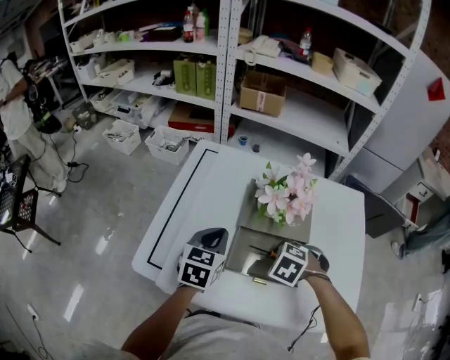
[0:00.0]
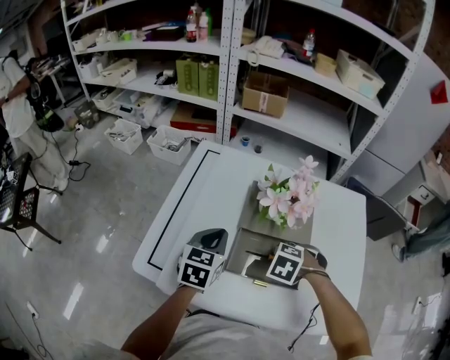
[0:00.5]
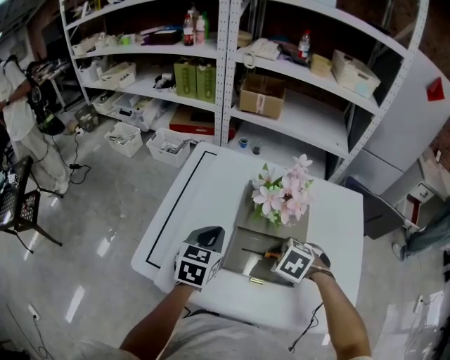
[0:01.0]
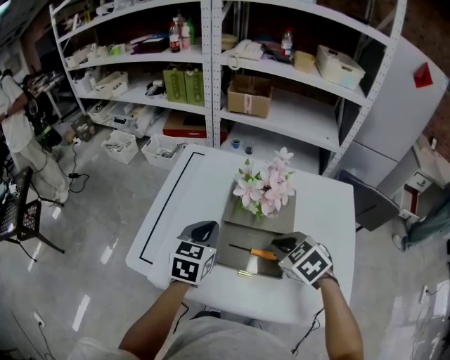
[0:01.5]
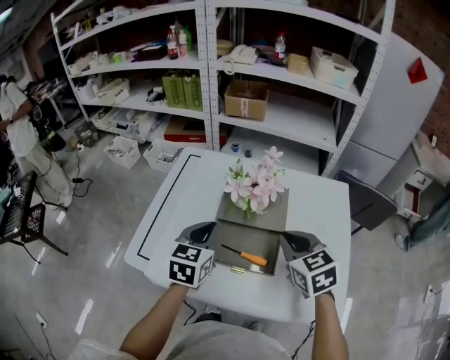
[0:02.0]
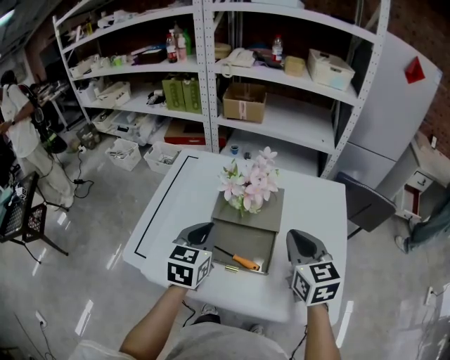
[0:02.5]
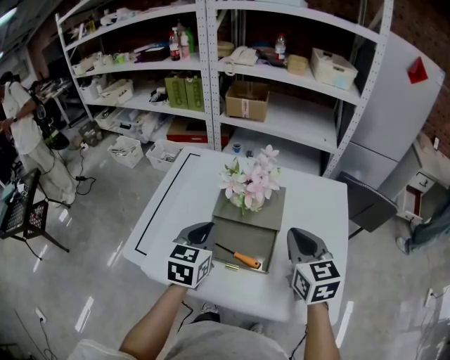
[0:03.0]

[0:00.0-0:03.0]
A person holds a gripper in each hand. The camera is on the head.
0:00.0 to 0:01.5: The right gripper is displaced upward by approximately 10 cm, and changes its angle by some 30 degrees. The left gripper ends up about 5 cm from where it was.
0:01.5 to 0:03.0: The left gripper changes place by roughly 5 cm; the right gripper moves upward and to the right, some 15 cm, and angles its fingers upward, by roughly 30 degrees.

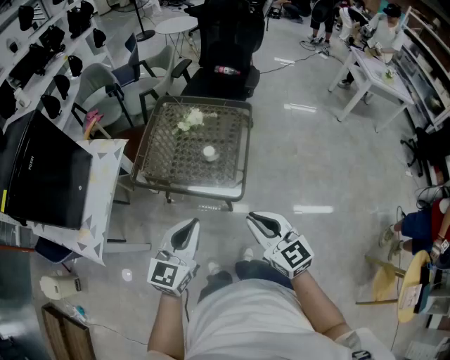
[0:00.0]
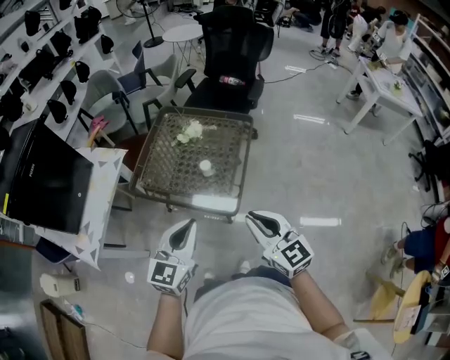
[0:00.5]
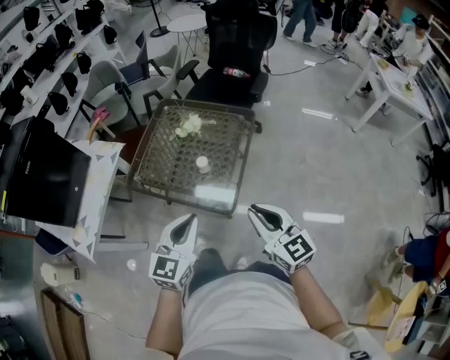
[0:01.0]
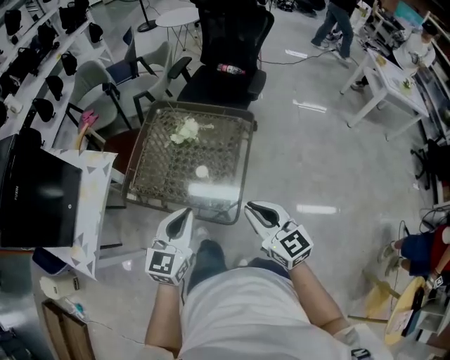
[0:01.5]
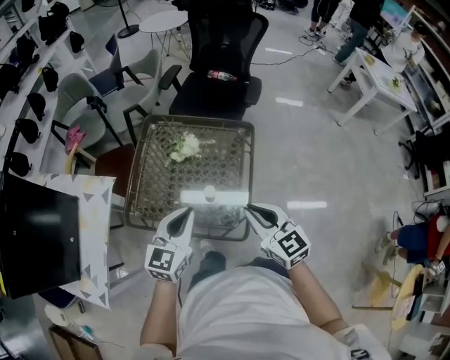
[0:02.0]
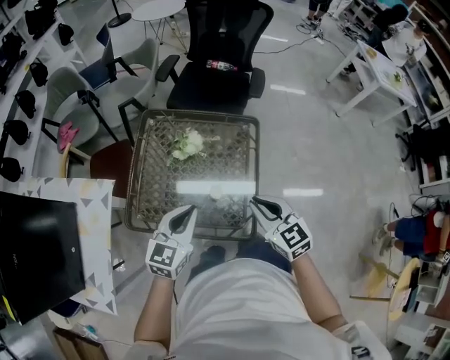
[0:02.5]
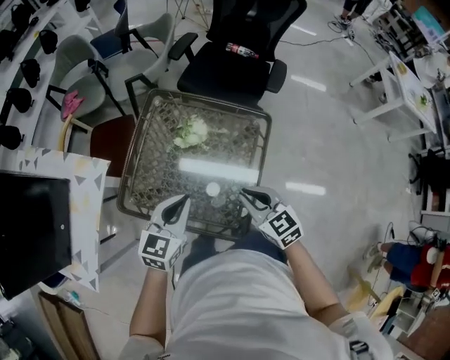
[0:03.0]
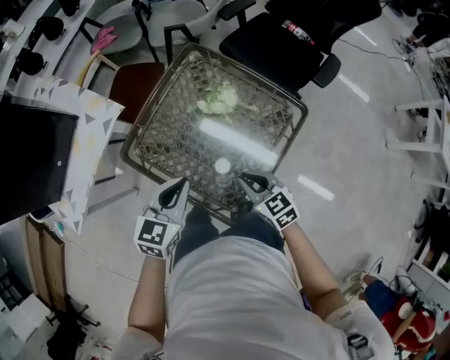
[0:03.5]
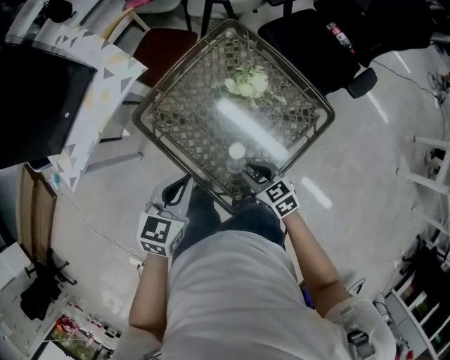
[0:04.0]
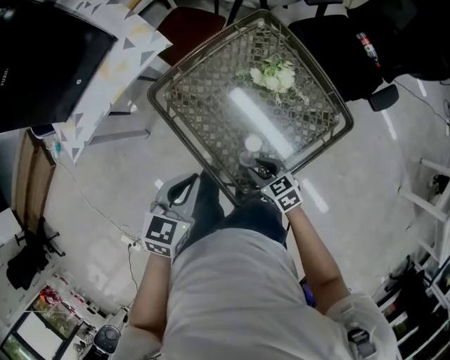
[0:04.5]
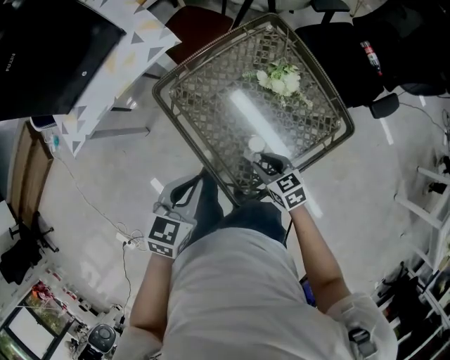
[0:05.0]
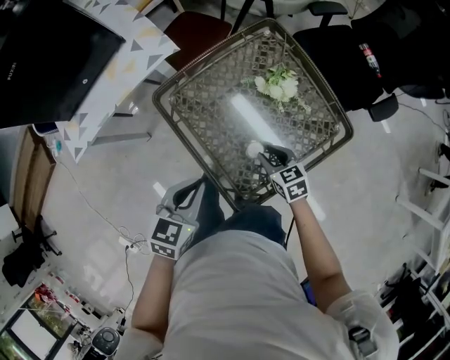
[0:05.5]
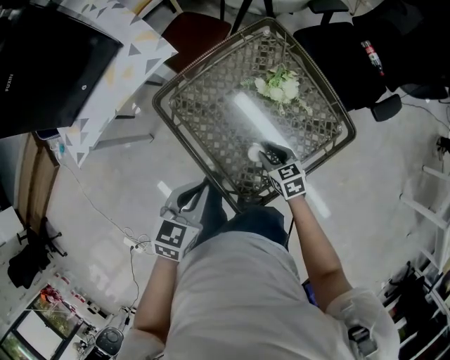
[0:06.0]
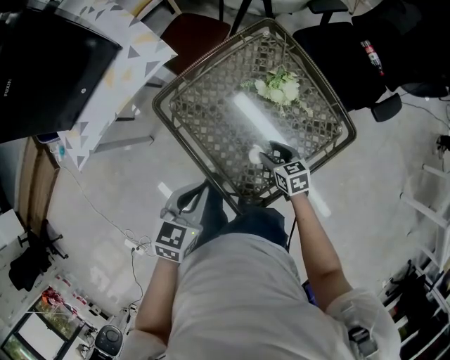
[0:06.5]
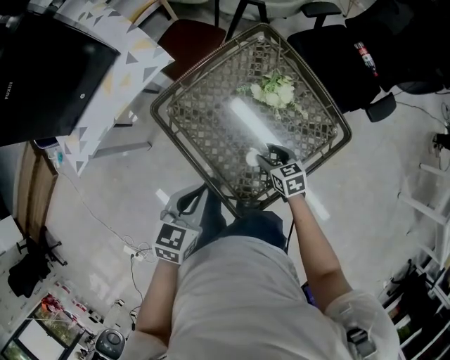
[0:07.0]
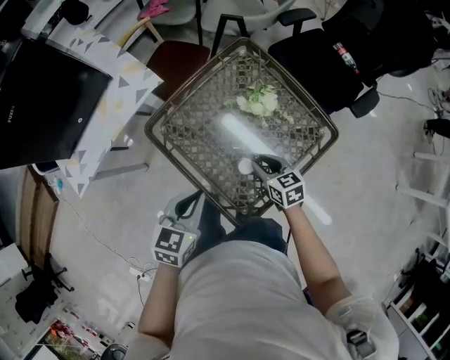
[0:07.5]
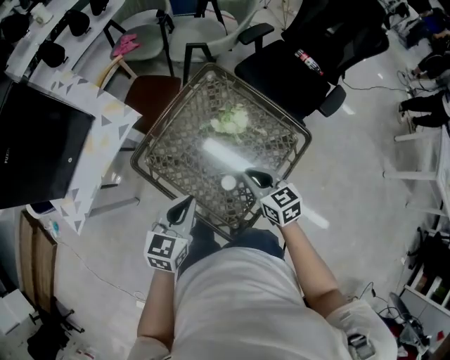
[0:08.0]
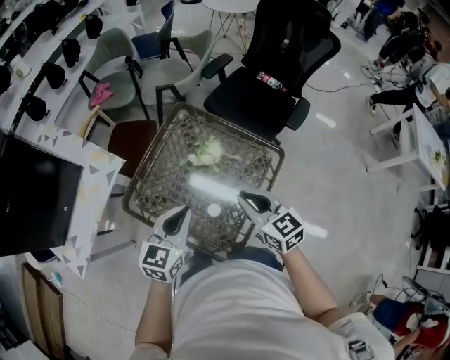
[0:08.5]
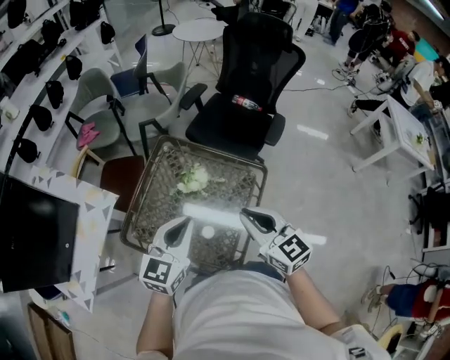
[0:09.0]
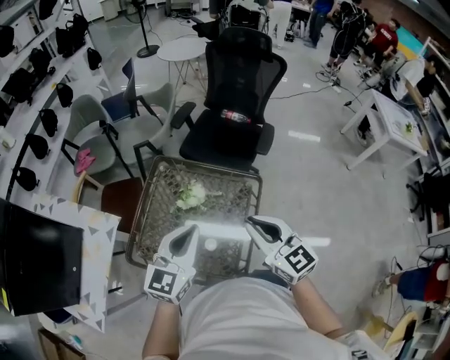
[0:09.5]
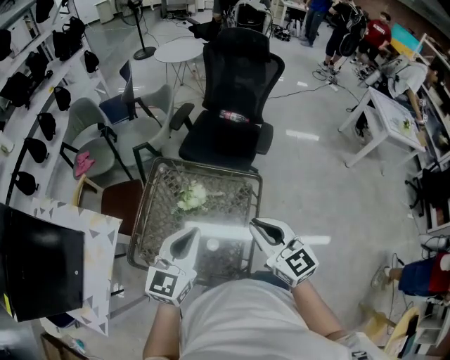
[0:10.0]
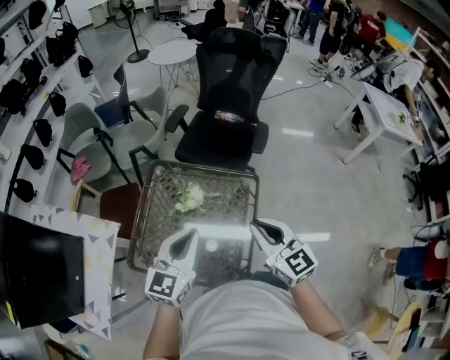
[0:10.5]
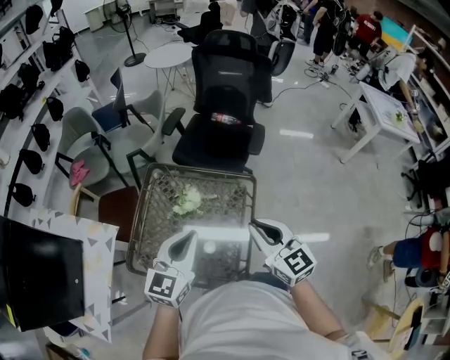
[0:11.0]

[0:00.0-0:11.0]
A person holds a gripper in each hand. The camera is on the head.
0:00.0 to 0:02.0: The grippers both shift forward by roughly 25 cm.
0:02.0 to 0:03.5: The left gripper shifts roughly 10 cm downward, and rotates some 30 degrees. The right gripper moves downward, roughly 20 cm, and rotates about 40 degrees.
0:03.5 to 0:05.5: The right gripper goes roughly 10 cm downward, and opens up; the left gripper travels to the left and backward by roughly 10 cm.
0:05.5 to 0:07.5: The right gripper opens and closes again.
0:07.5 to 0:09.0: The right gripper moves upward, about 30 cm, turns by some 40 degrees, and closes its fingers, while the left gripper heads upward, covering approximately 15 cm, and changes its angle by about 30 degrees.
0:09.0 to 0:11.0: The right gripper moves some 5 cm.

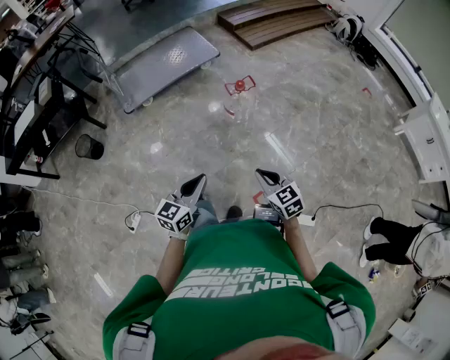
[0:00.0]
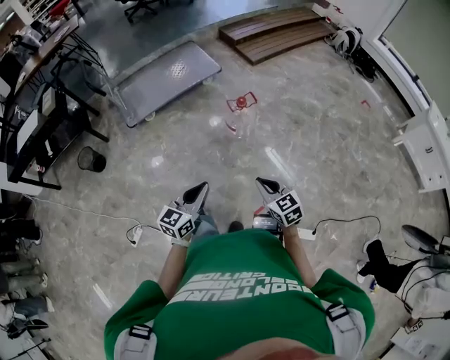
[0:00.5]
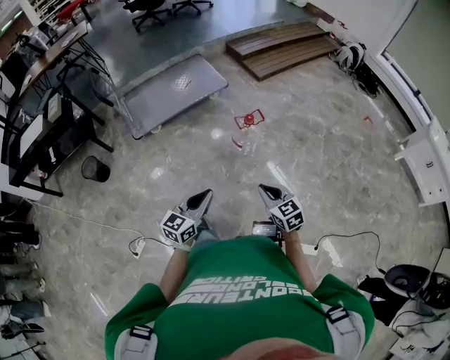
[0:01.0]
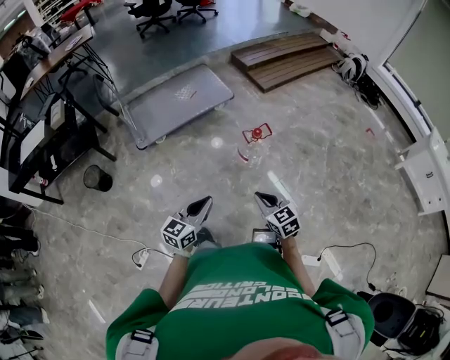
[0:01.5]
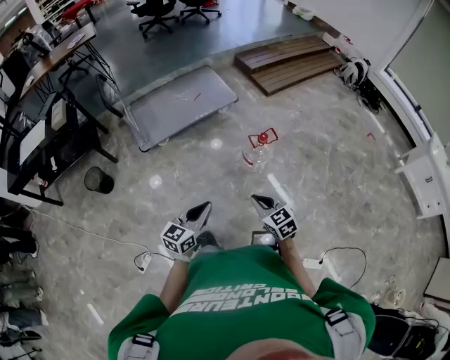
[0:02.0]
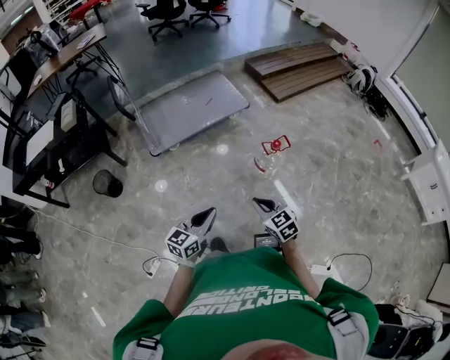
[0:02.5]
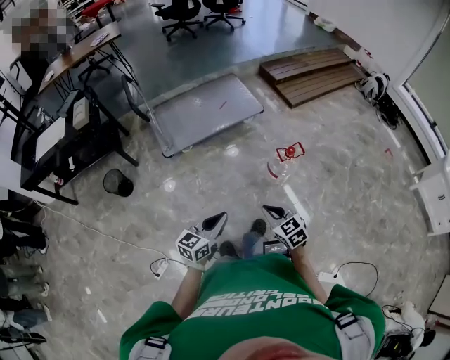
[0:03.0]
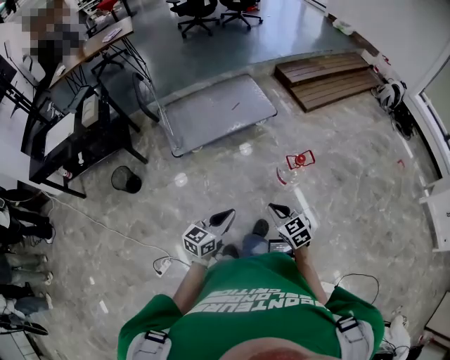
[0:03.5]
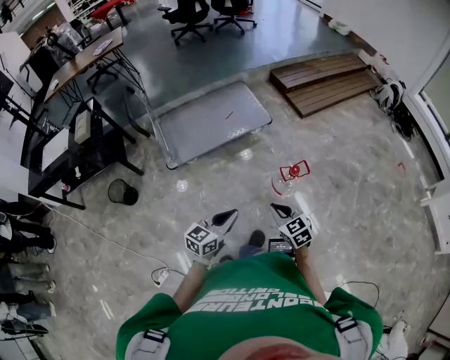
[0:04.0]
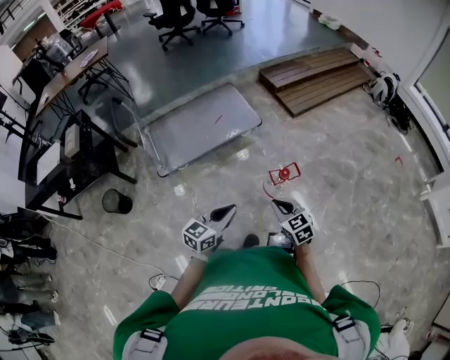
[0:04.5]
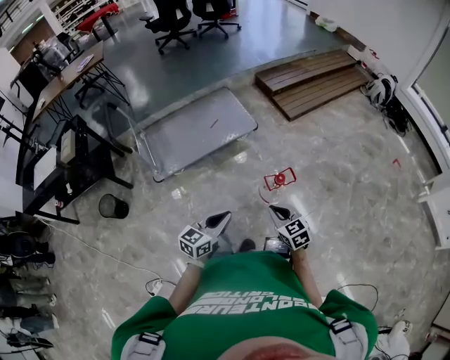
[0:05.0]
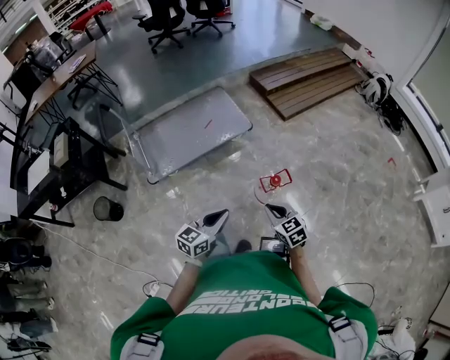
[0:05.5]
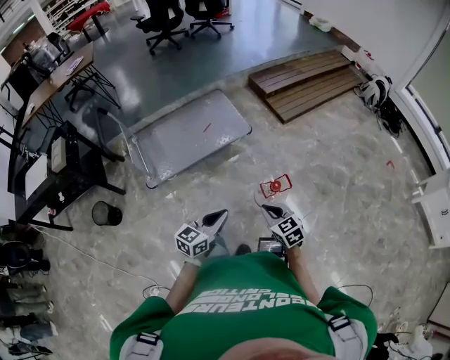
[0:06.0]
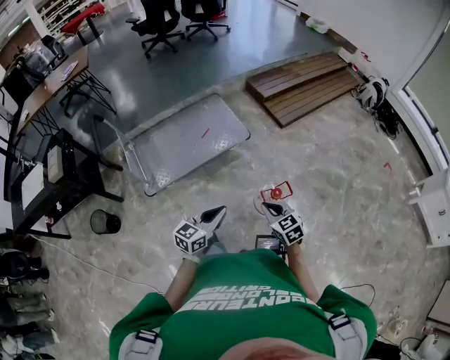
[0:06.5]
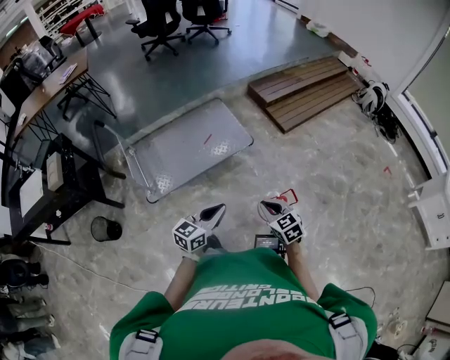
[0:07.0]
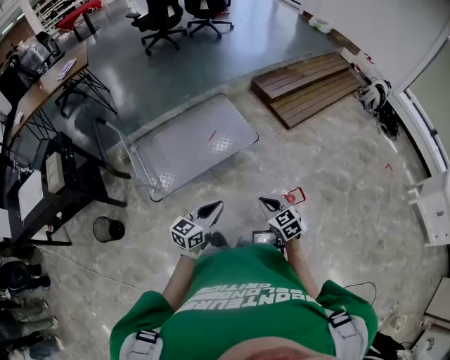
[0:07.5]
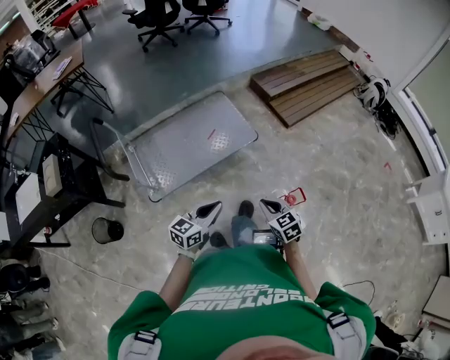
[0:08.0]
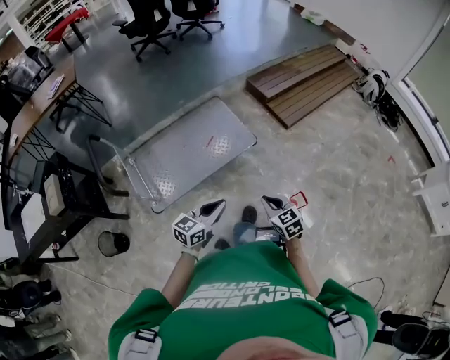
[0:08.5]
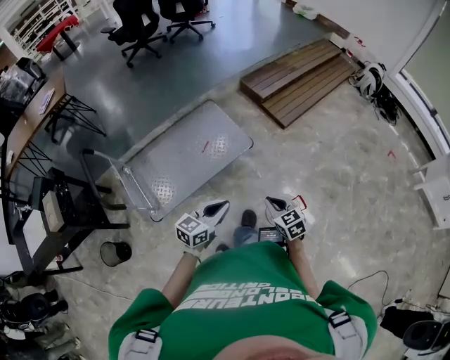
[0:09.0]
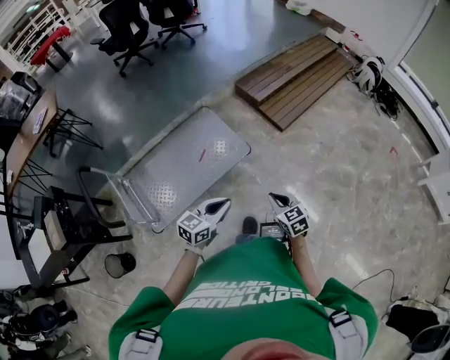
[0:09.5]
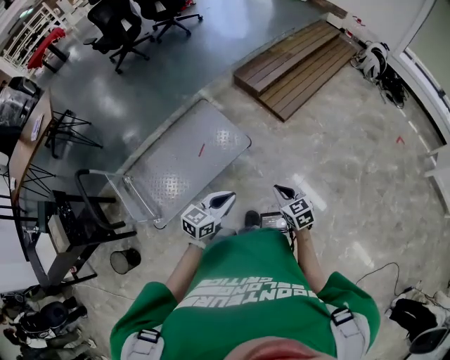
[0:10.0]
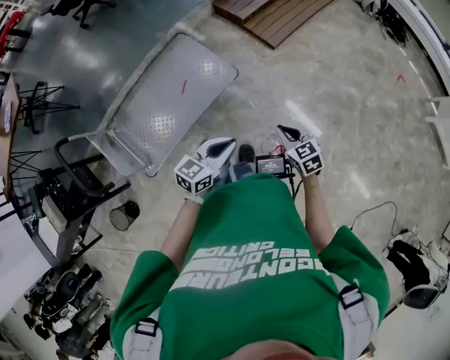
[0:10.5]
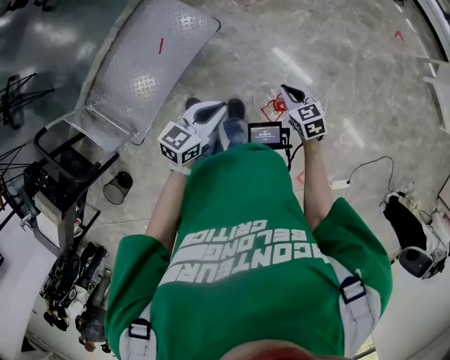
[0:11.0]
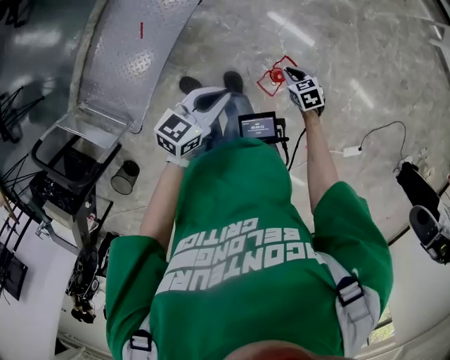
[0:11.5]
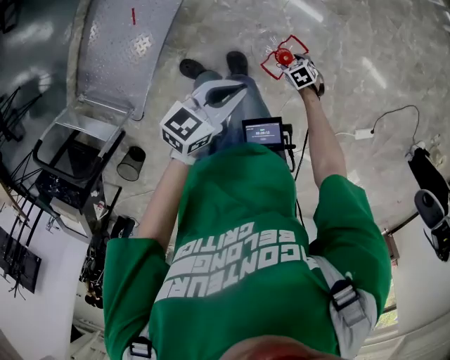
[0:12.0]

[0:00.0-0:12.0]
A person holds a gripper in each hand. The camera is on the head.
0:00.0 to 0:02.0: Both grippers move to the left and forward, about 20 cm.
0:02.0 to 0:04.0: Both grippers travel together forward, about 20 cm.
0:04.0 to 0:06.0: The right gripper is displaced forward and to the right by approximately 15 cm. Meanwhile the left gripper is displaced forward by some 15 cm.
0:06.0 to 0:08.0: The two grippers go some 20 cm to the left and forward.
0:08.0 to 0:10.0: The grippers both shift forward and to the right by approximately 30 cm.
0:10.0 to 0:12.0: The right gripper shifts approximately 40 cm downward, tilts its fingers some 40 degrees downward, and opens its fingers, while the left gripper ends up approximately 20 cm from where it was, and swivels approximately 30 degrees.
